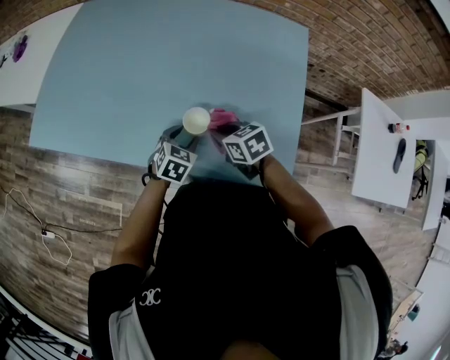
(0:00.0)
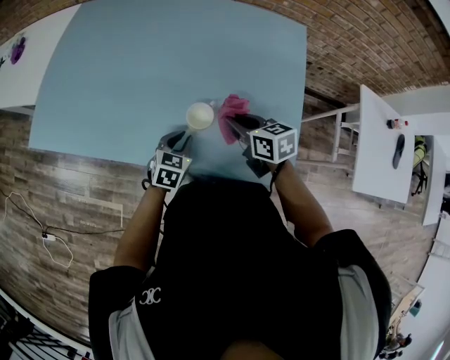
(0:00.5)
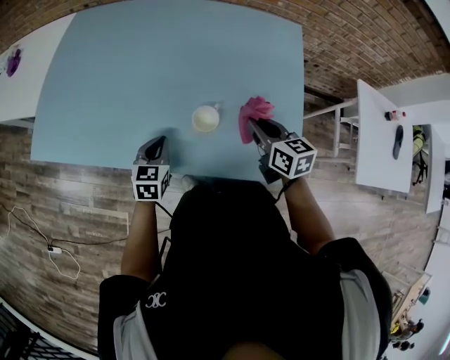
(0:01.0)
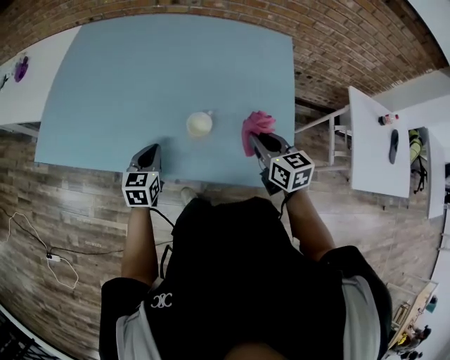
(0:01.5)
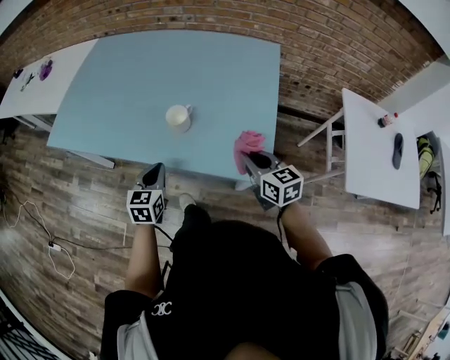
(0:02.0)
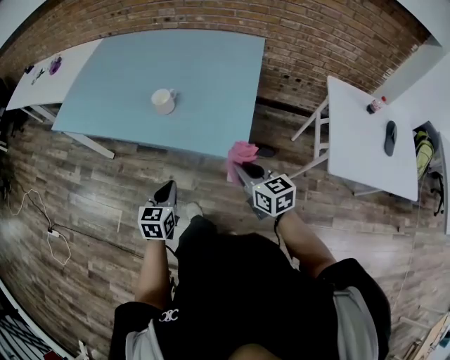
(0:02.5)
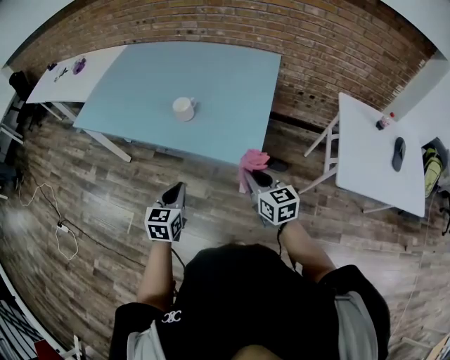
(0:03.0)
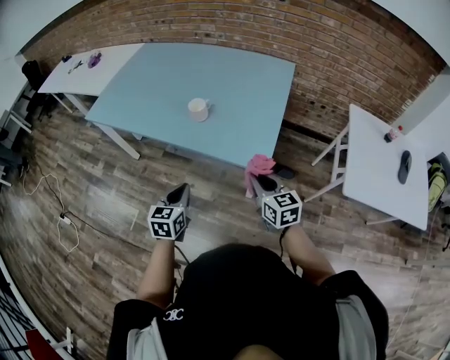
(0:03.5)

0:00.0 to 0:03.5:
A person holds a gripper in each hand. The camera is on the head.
0:00.0 to 0:02.0: The right gripper moves to the right, backward and upward, roughly 20 cm, and swivels some 30 degrees, while the left gripper moves backward and upward, about 15 cm, swivels approximately 30 degrees, and closes.
0:02.0 to 0:03.5: Both grippers travel together backward, roughly 15 cm.

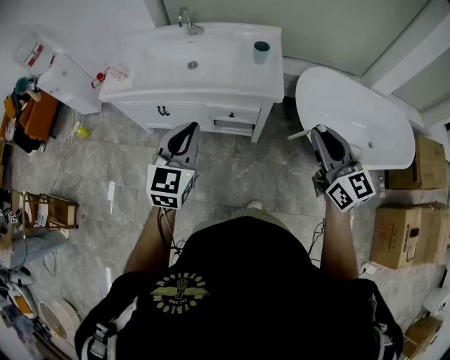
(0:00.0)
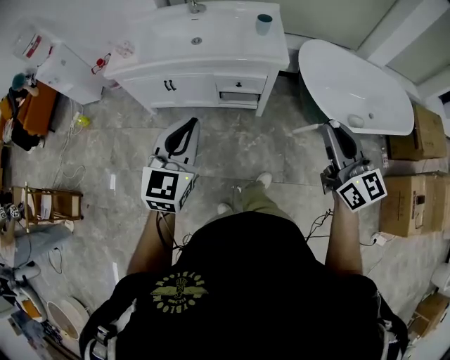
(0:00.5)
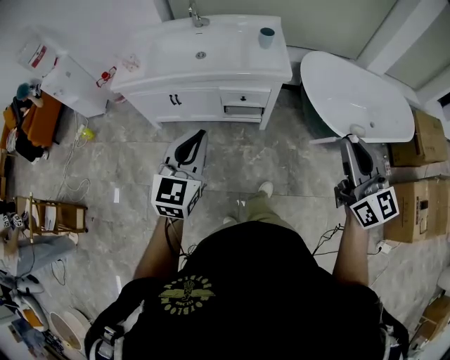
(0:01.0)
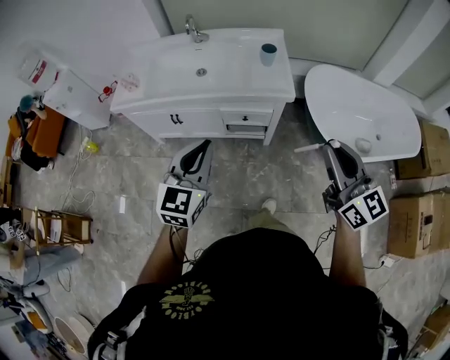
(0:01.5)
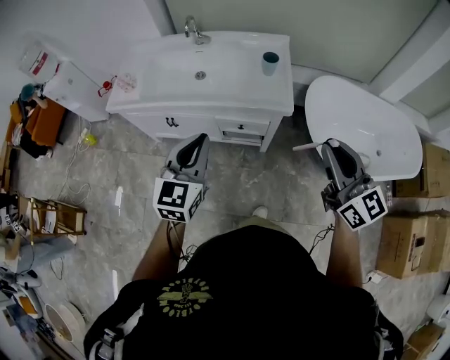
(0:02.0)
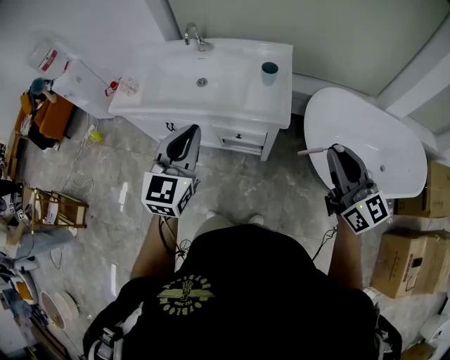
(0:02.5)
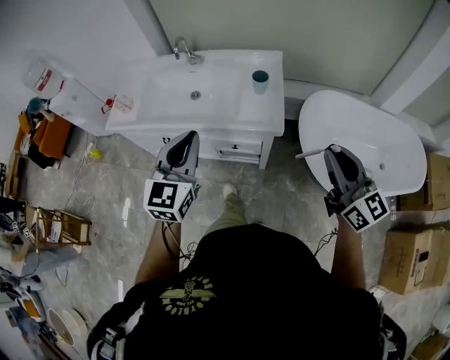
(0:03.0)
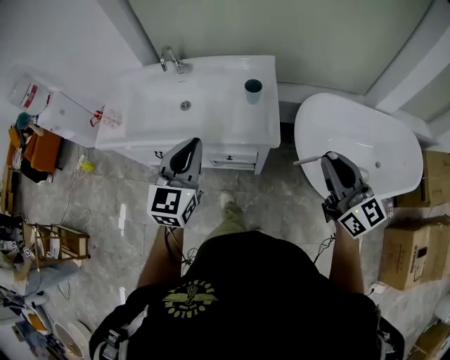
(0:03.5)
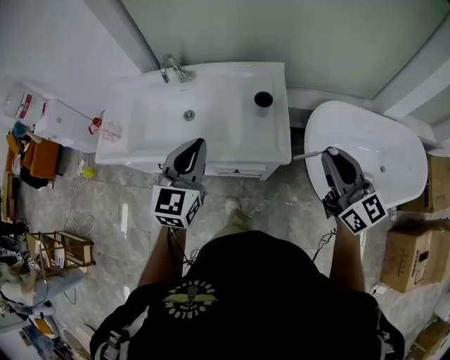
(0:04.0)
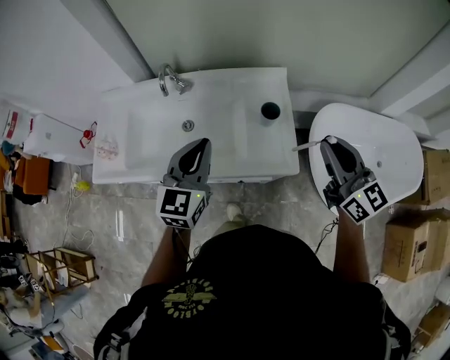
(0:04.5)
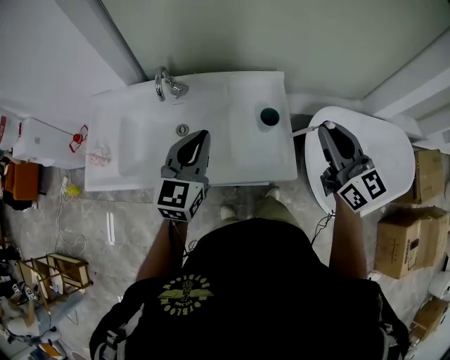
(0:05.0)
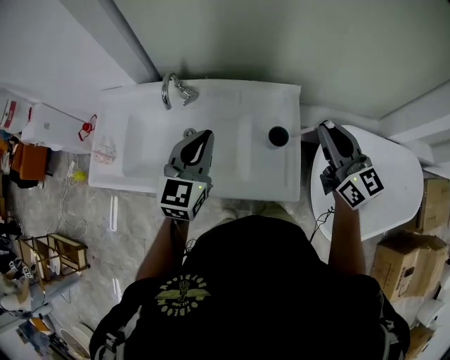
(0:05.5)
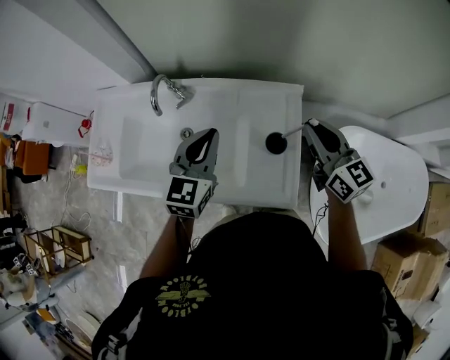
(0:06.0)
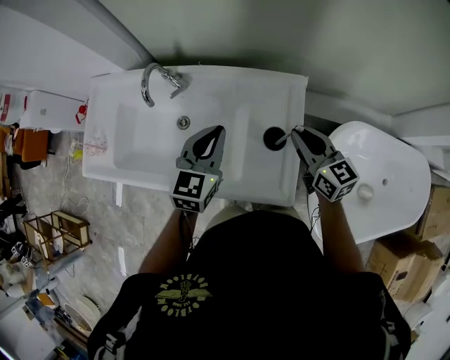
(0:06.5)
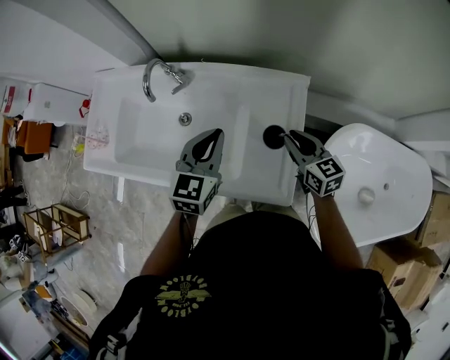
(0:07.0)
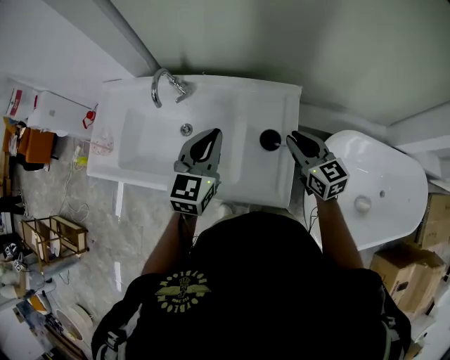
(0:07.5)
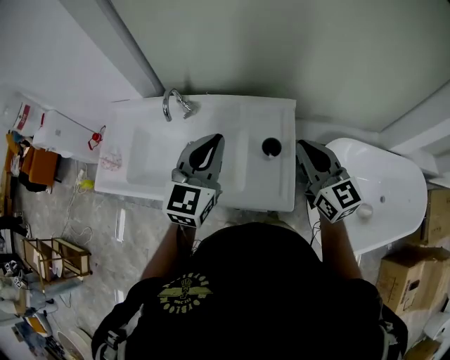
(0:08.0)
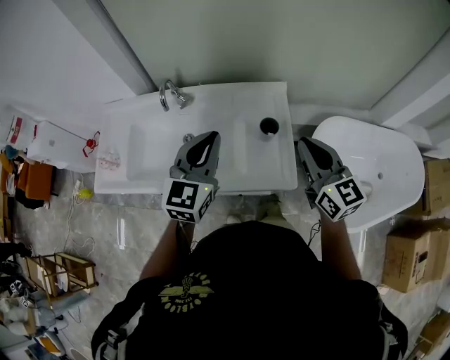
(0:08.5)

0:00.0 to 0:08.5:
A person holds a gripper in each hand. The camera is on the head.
0:00.0 to 0:02.0: The right gripper goes backward and returns, about 15 cm each way, while the left gripper moves roughly 15 cm backward and comes back.
0:02.0 to 0:04.0: Both grippers move forward, some 25 cm.
0:04.0 to 0:06.5: The two grippers go approximately 30 cm forward and downward. The right gripper turns by some 20 degrees.
0:06.5 to 0:08.5: Both grippers move backward and upward, some 20 cm. The right gripper swivels approximately 20 degrees.

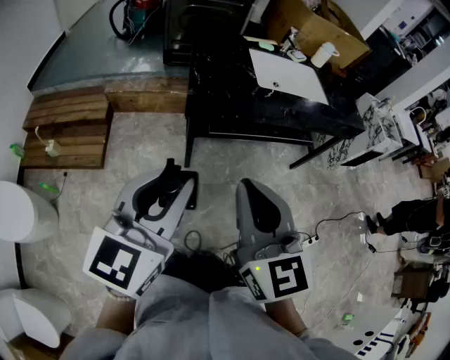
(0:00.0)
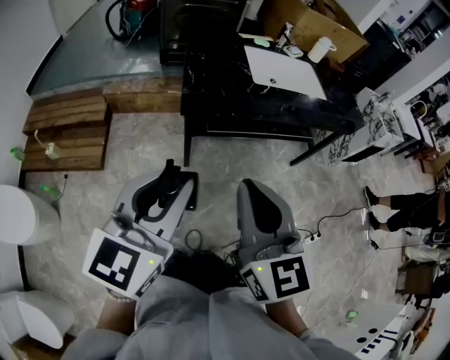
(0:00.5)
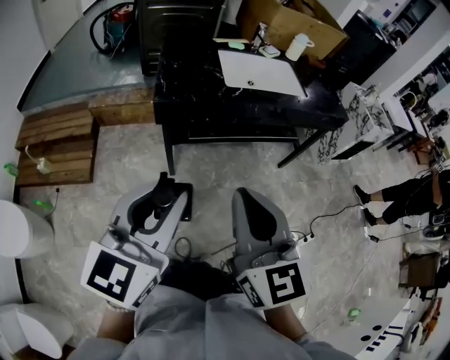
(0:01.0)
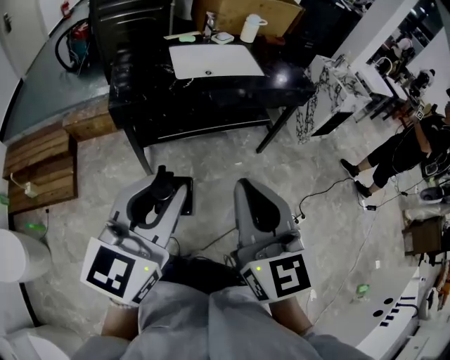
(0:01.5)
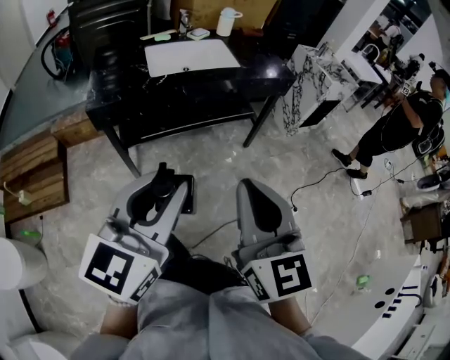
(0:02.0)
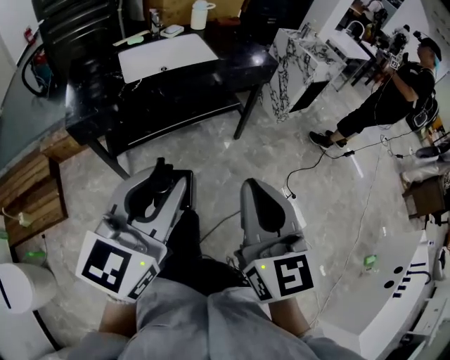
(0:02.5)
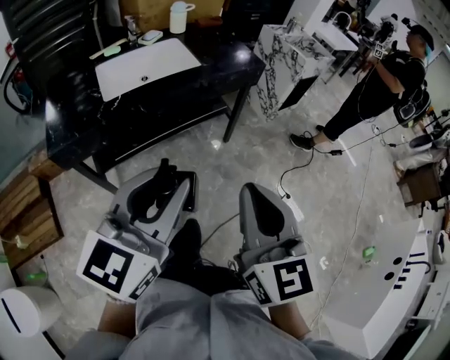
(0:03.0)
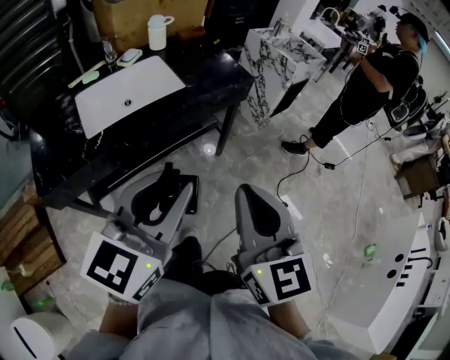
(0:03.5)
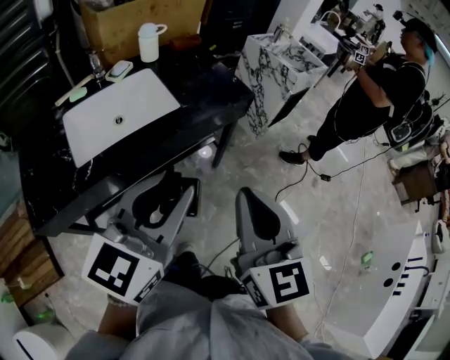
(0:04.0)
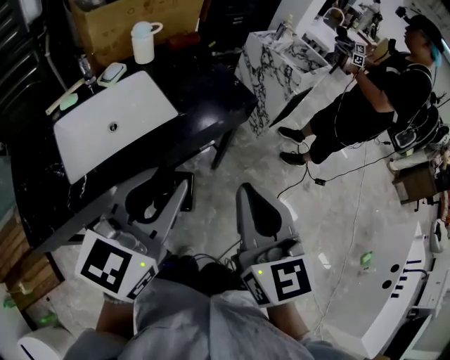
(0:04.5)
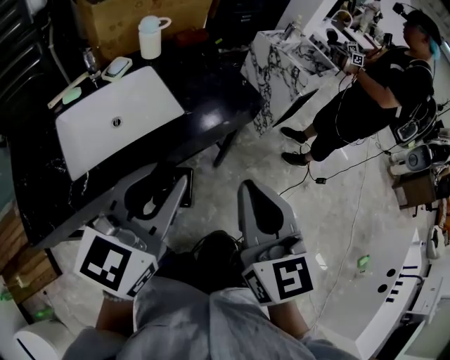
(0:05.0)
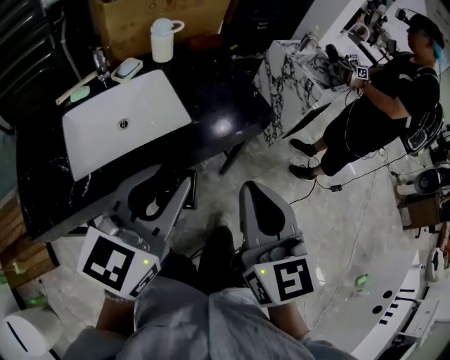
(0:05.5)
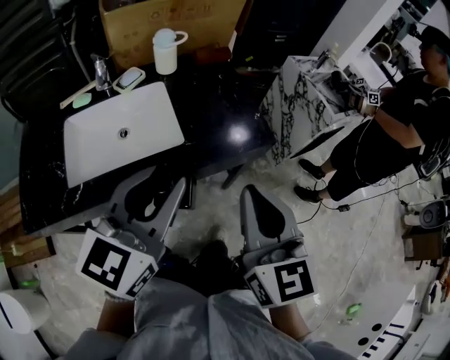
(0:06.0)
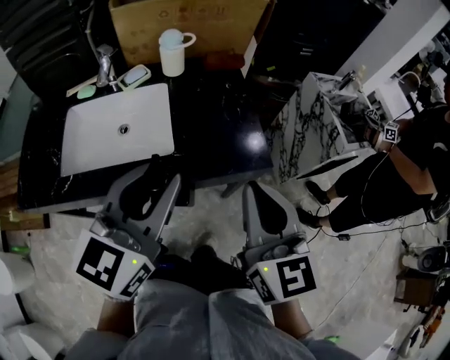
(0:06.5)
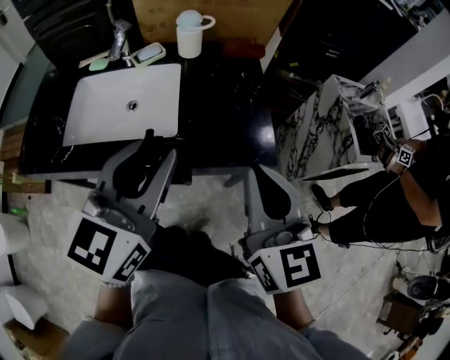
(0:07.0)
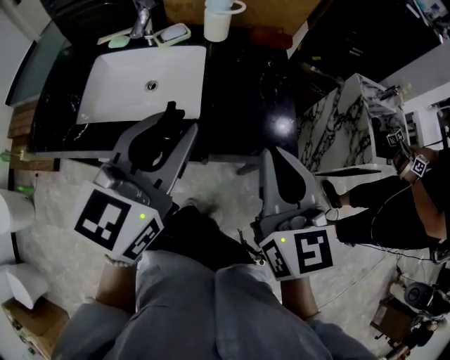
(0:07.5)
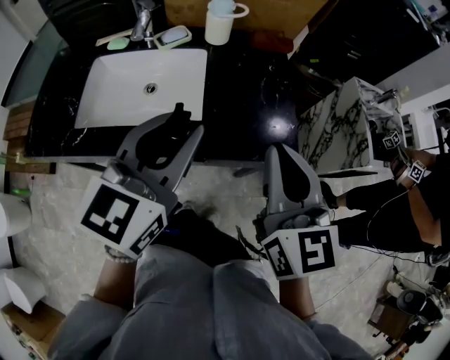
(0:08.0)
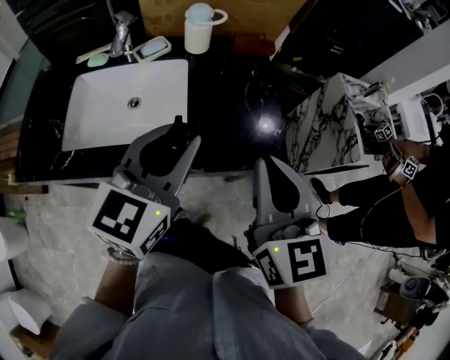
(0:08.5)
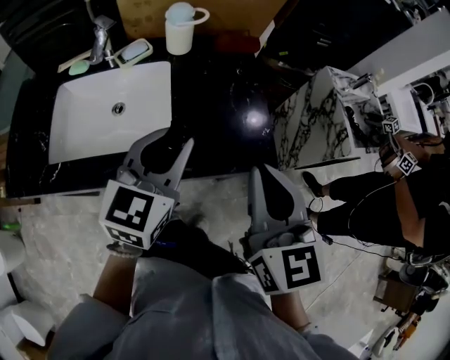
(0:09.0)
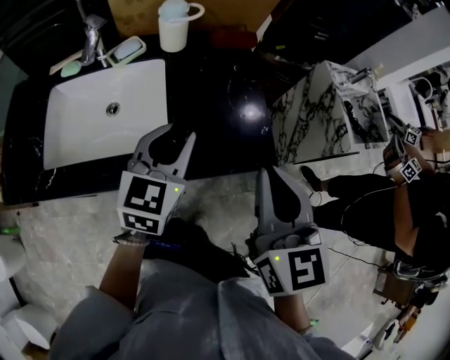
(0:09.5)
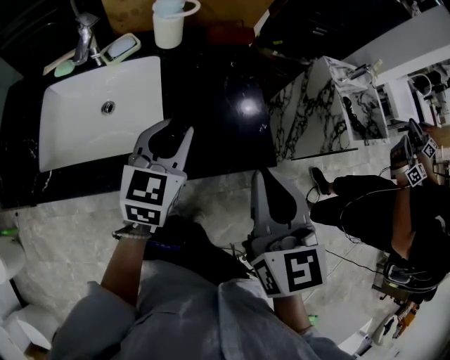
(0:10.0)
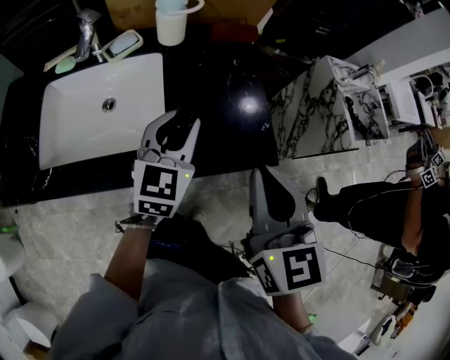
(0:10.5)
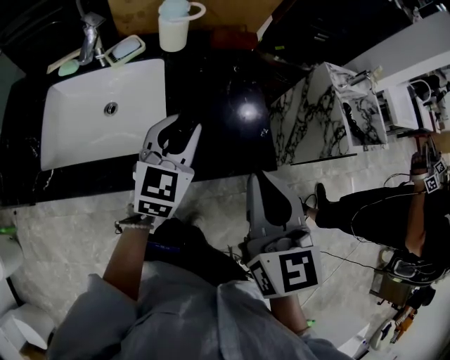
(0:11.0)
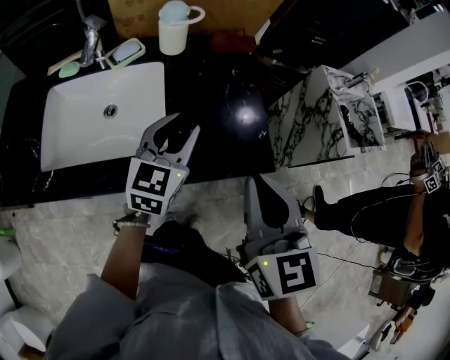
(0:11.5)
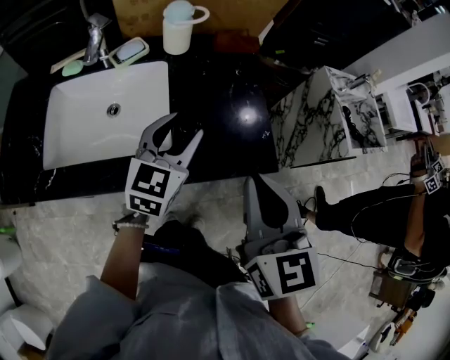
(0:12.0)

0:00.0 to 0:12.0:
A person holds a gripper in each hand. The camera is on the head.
0:00.0 to 0:02.0: The grippers both shift to the right by about 35 cm.
0:02.0 to 0:04.0: Both grippers move forward, some 35 cm.
0:04.0 to 0:06.0: The grippers both shift forward by roughly 20 cm.
0:06.0 to 0:08.0: Both grippers move forward, roughly 10 cm. The left gripper swivels approximately 20 degrees.
0:08.0 to 0:10.0: The right gripper moves approximately 5 cm, while the left gripper shifts about 20 cm downward and forward.
0:10.0 to 0:12.0: The left gripper opens its fingers.

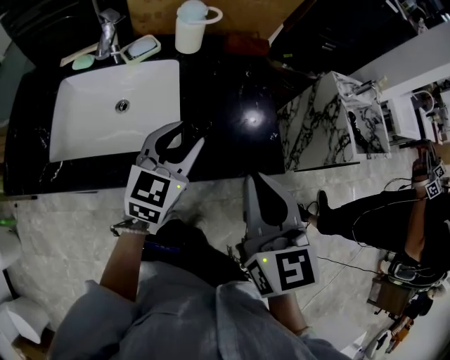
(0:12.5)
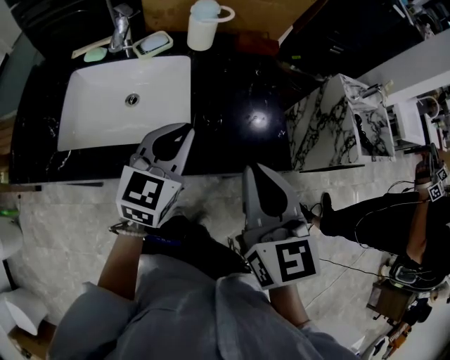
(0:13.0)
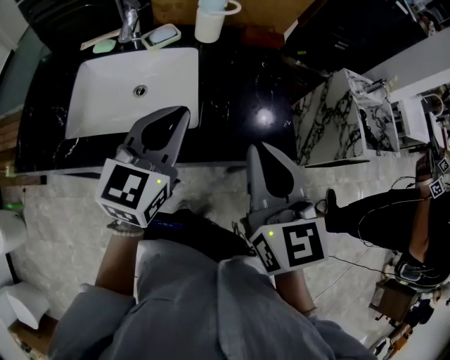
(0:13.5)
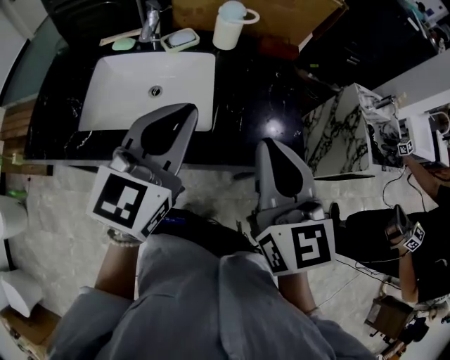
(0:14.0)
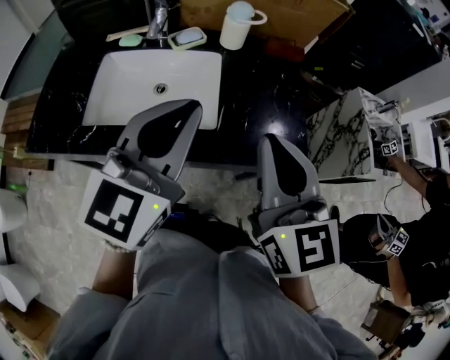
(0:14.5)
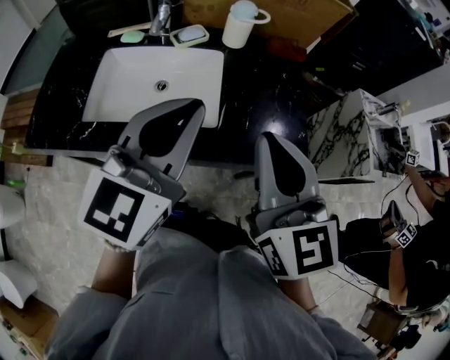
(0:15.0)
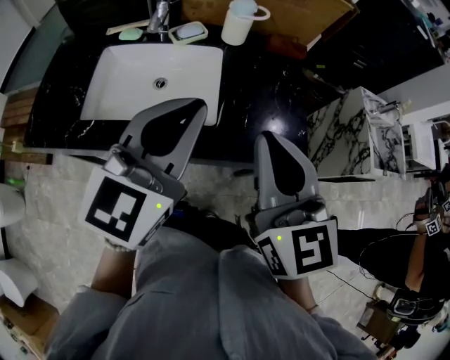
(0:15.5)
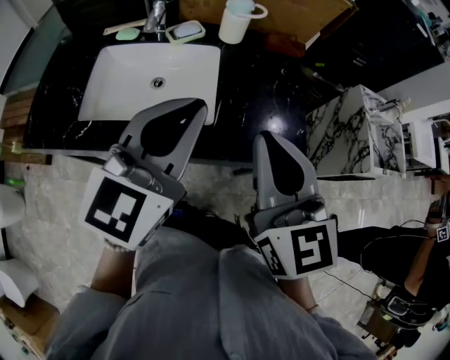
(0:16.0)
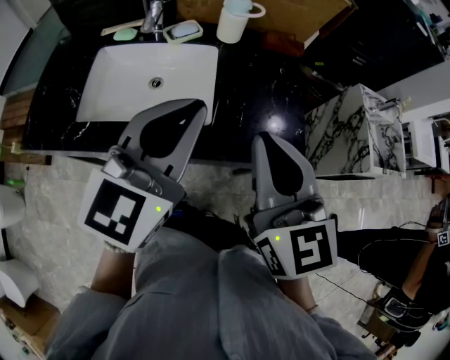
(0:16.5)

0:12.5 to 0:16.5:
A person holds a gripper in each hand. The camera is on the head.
0:12.5 to 0:14.5: The right gripper shifts roughly 10 cm to the left and upward; the left gripper is displaced upward, backward and to the left by roughly 20 cm, and closes its fingers.
0:14.5 to 0:16.5: The grippers stay close to where they were, moving slightly.
